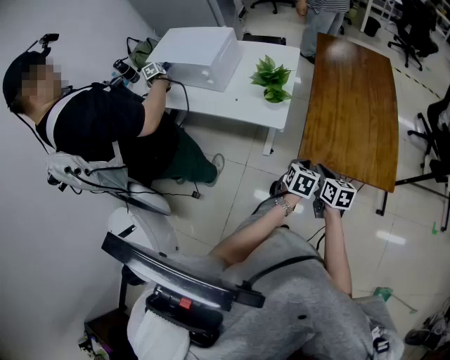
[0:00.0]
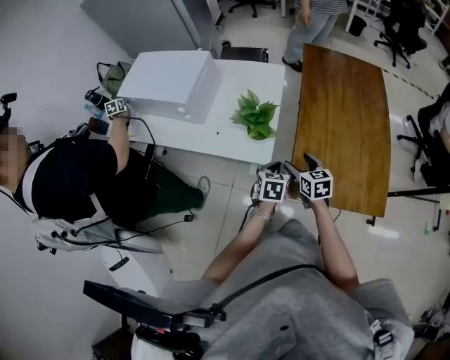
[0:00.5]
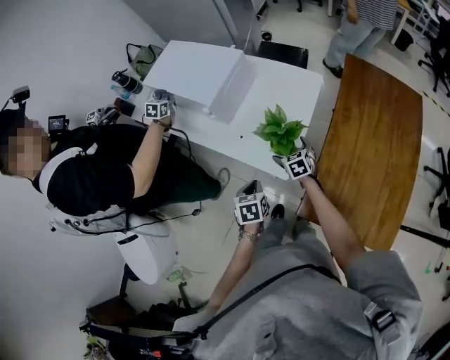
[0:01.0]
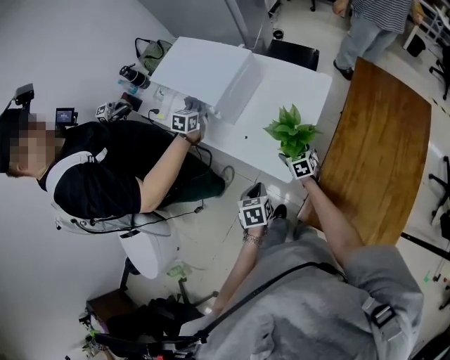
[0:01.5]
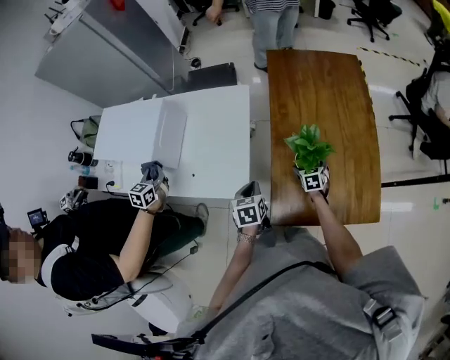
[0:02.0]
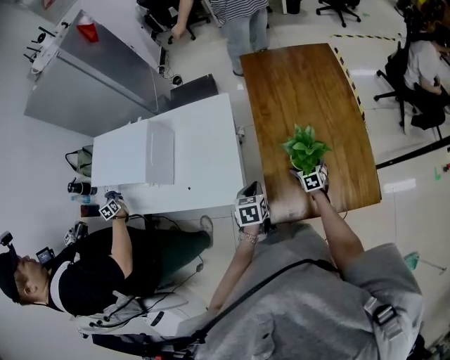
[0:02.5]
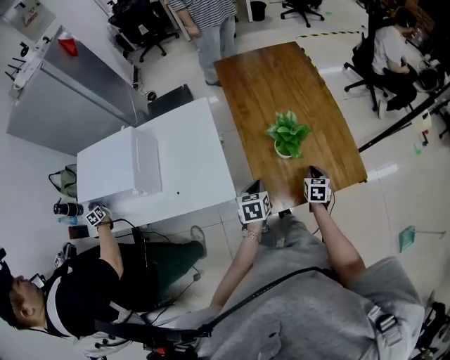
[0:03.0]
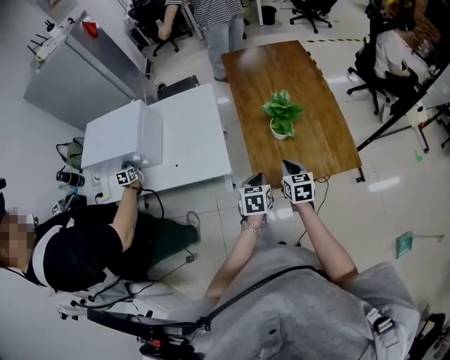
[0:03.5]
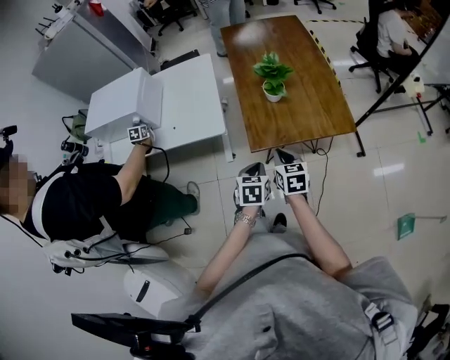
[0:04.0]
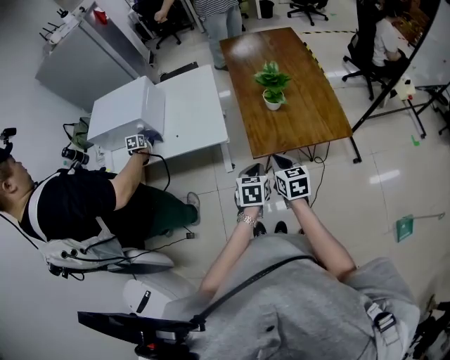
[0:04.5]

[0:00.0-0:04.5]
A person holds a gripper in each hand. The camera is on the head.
0:00.0 to 0:02.0: The right gripper shifts by about 35 cm, changes its angle by some 40 degrees, and opens up, while the left gripper ends up roughly 25 cm from where it was, and swivels some 20 degrees.
0:02.0 to 0:04.5: The right gripper moves roughly 40 cm, swivels about 30 degrees, and closes up. The left gripper shifts by approximately 30 cm, and rotates roughly 20 degrees.
